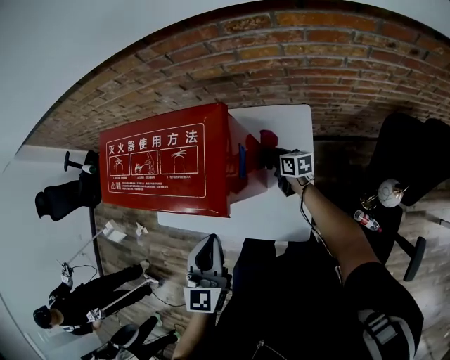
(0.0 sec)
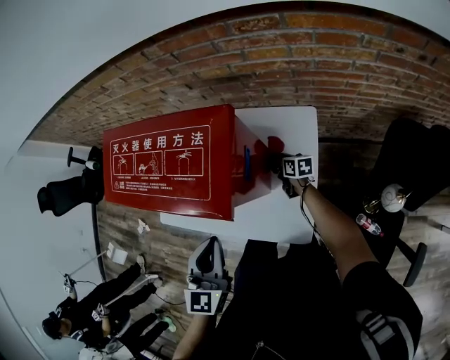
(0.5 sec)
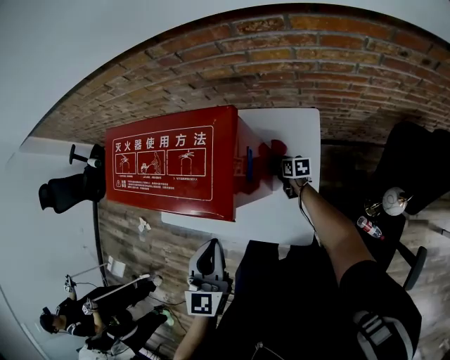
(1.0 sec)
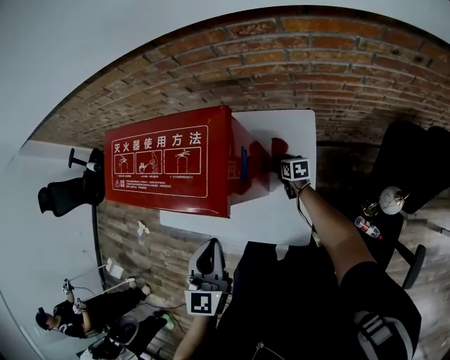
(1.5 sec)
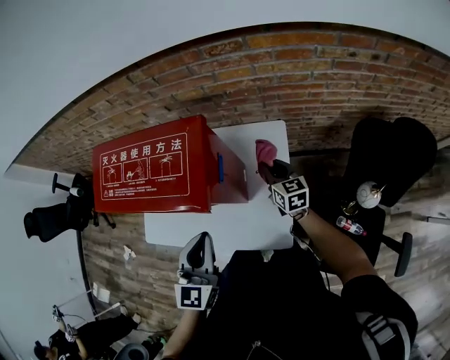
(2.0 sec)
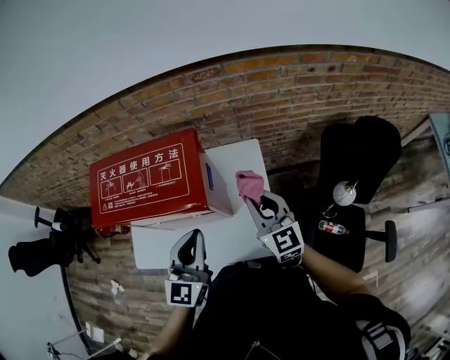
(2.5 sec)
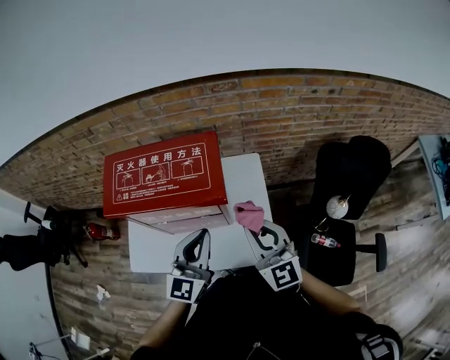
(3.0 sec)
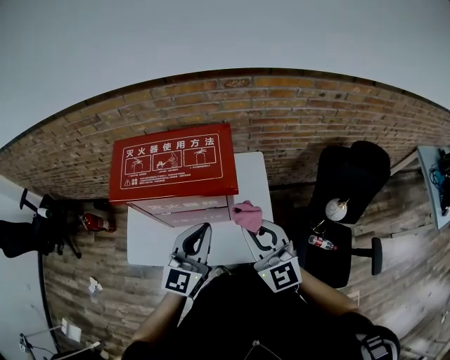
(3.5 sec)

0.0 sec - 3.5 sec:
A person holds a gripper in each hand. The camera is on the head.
0.0 sec - 2.0 sec: The right gripper moves upward, to the right and backward, some 15 cm, and changes its angle by about 30 degrees.
2.0 sec - 3.5 sec: The left gripper moves approximately 5 cm, and changes its angle by some 20 degrees; the right gripper goes approximately 30 cm upward and backward, and changes its angle by about 40 degrees.

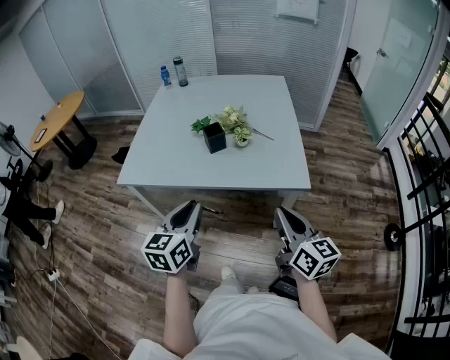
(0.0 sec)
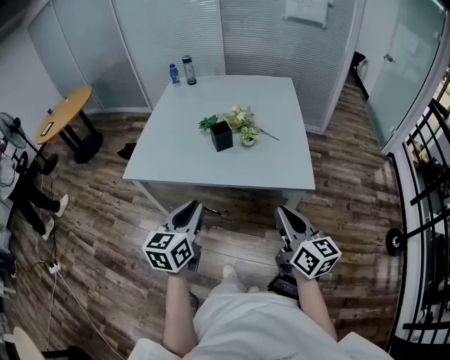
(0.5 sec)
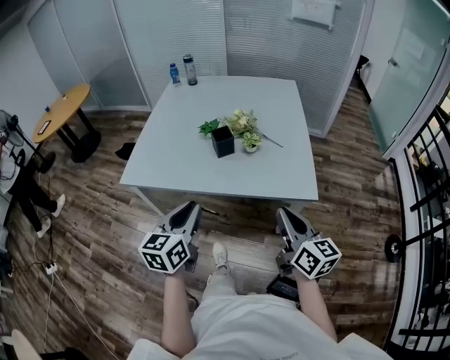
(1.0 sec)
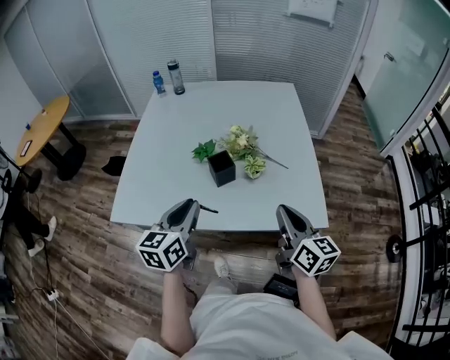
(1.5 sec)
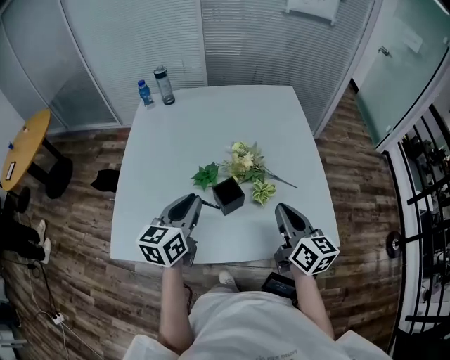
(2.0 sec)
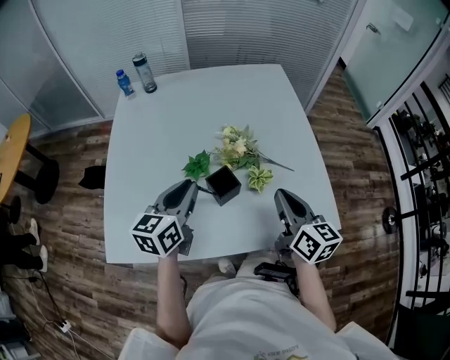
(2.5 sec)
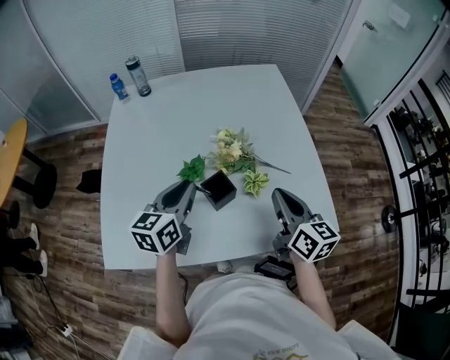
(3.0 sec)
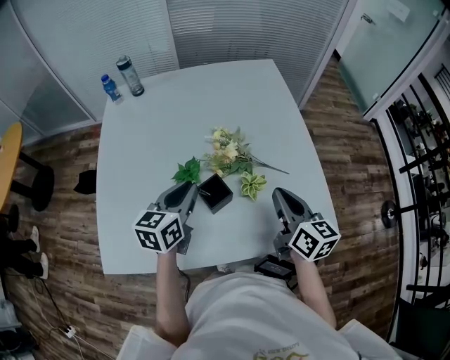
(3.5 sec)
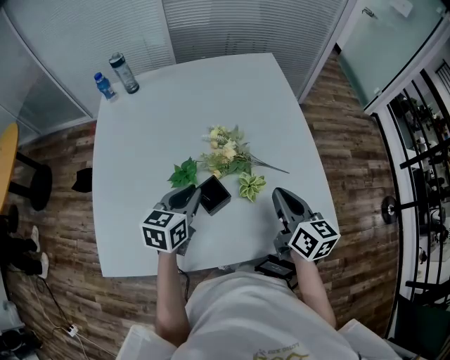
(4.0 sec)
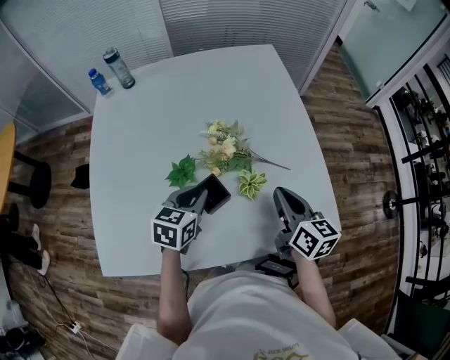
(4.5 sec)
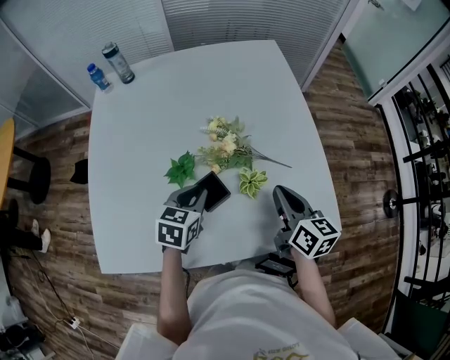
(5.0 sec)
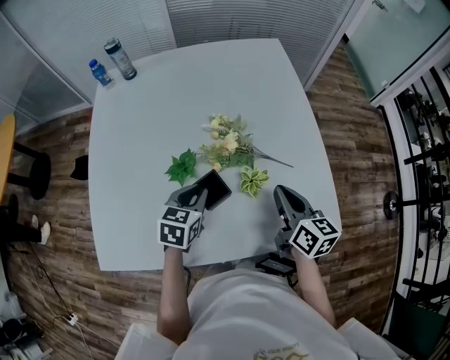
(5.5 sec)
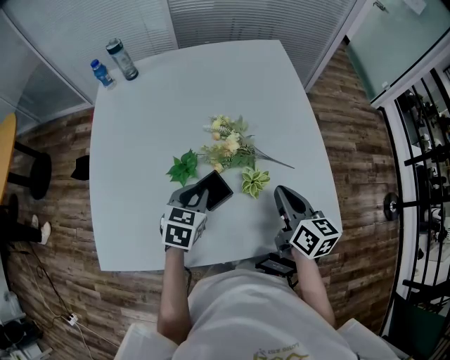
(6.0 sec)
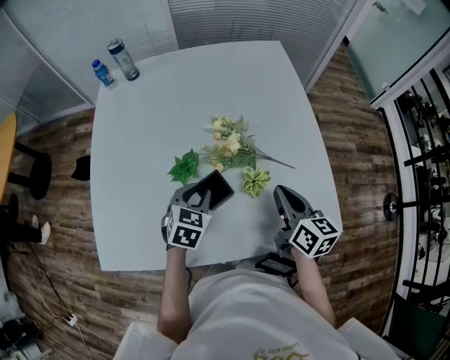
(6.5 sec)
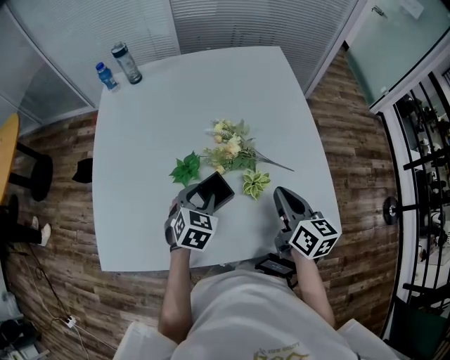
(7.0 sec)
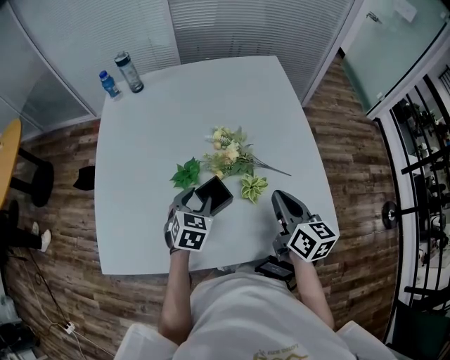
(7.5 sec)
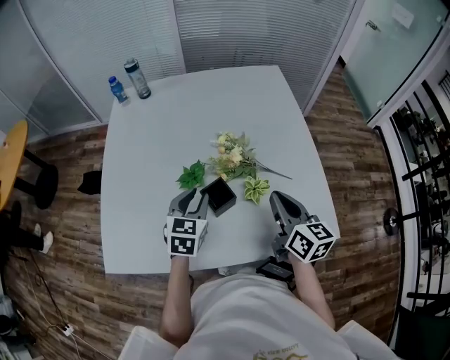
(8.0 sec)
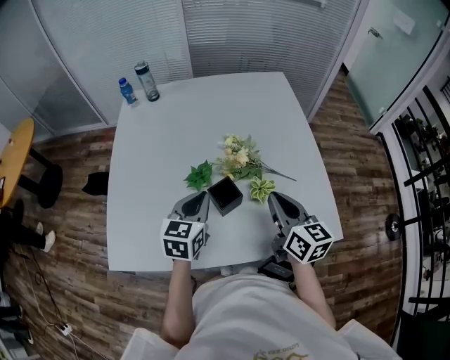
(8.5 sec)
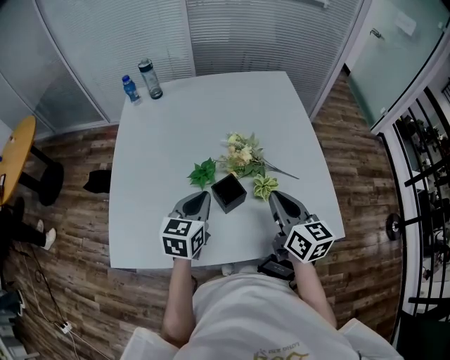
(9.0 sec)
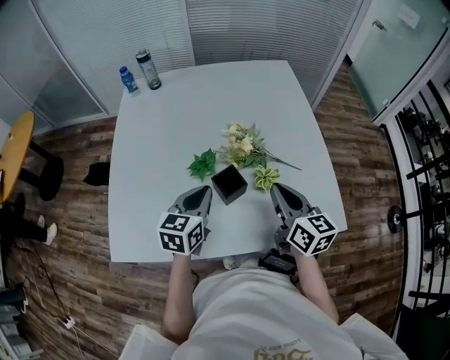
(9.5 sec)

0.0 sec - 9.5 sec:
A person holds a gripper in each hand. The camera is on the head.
0.0 sec - 2.0 sec: Both grippers move forward, roughly 40 cm.
2.0 sec - 4.0 sec: The left gripper shifts approximately 15 cm downward and forward, and changes its angle by some 20 degrees. The right gripper travels forward and downward by some 10 cm.
4.0 sec - 5.5 sec: The left gripper is displaced downward by about 5 cm.
5.5 sec - 7.5 sec: The left gripper opens its fingers.
7.5 sec - 9.5 sec: The right gripper goes some 5 cm to the left. The left gripper moves upward, about 10 cm, changes its angle by about 30 degrees, and closes its fingers.

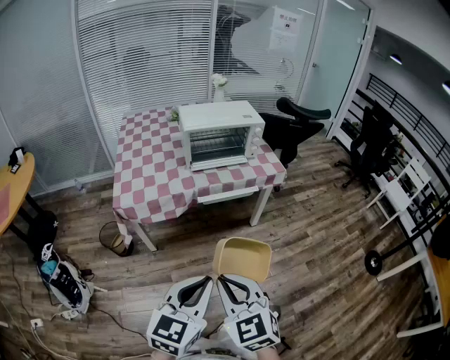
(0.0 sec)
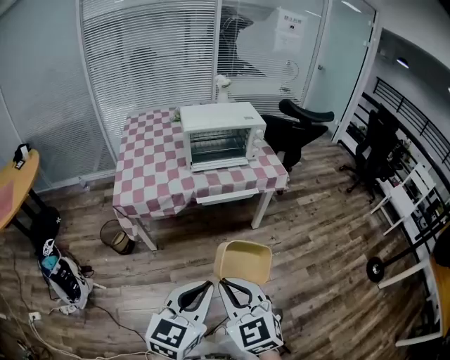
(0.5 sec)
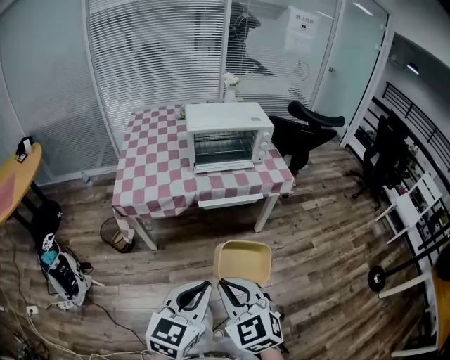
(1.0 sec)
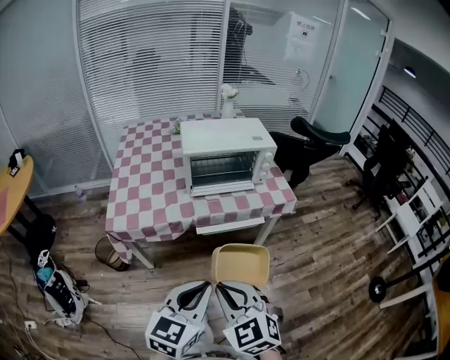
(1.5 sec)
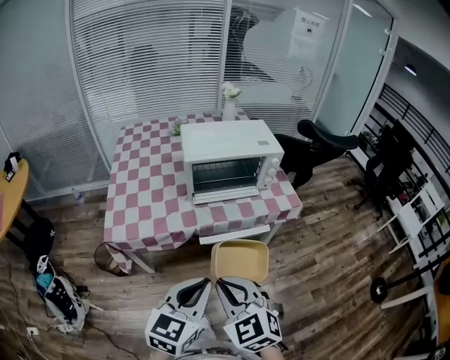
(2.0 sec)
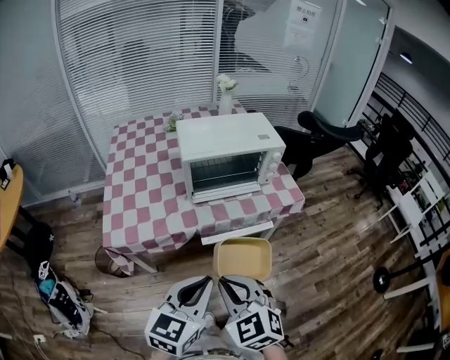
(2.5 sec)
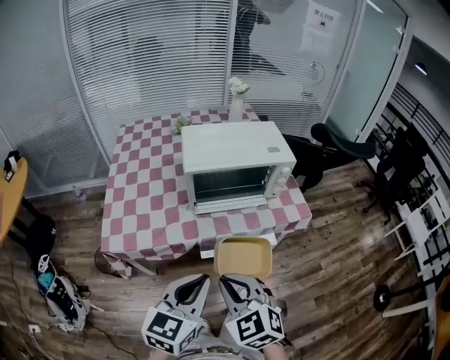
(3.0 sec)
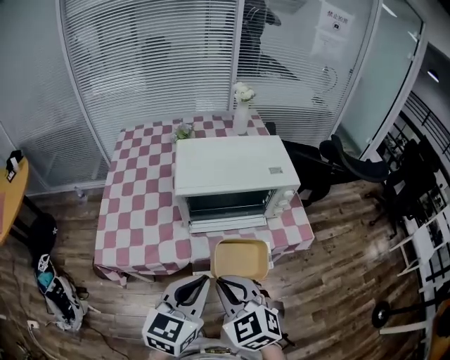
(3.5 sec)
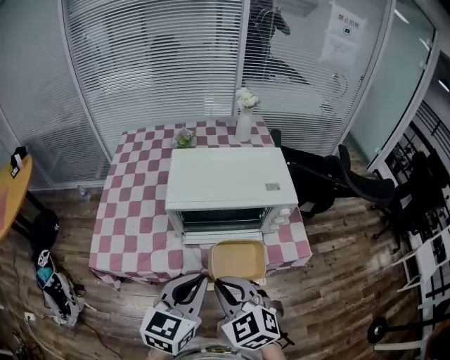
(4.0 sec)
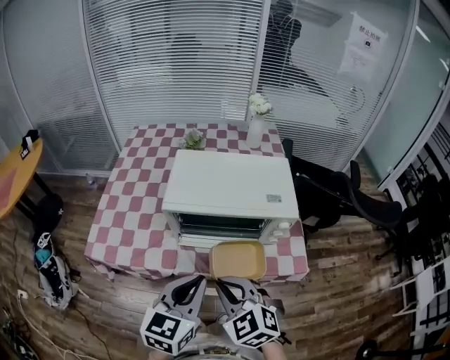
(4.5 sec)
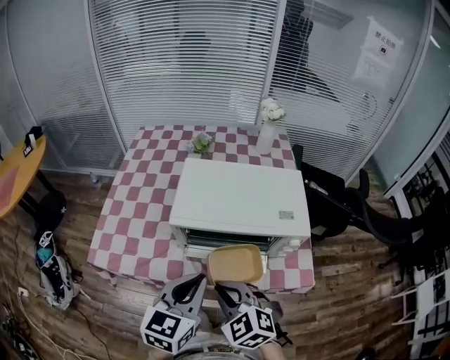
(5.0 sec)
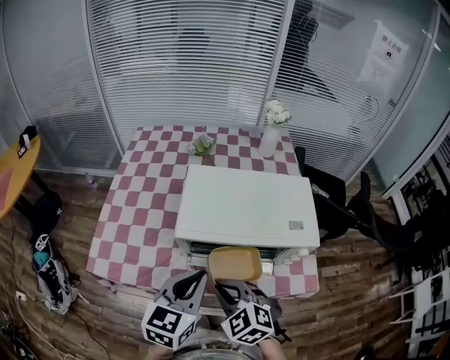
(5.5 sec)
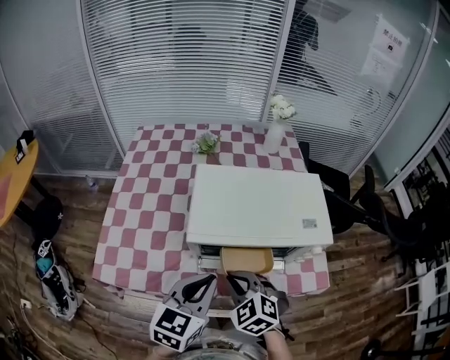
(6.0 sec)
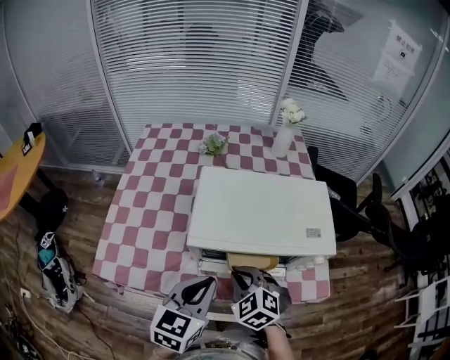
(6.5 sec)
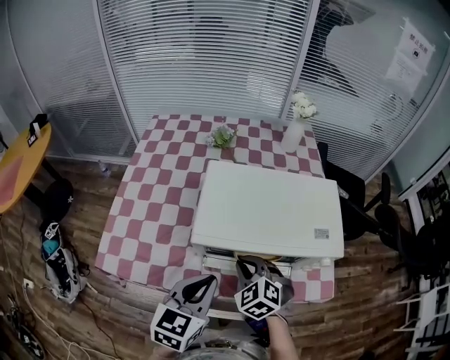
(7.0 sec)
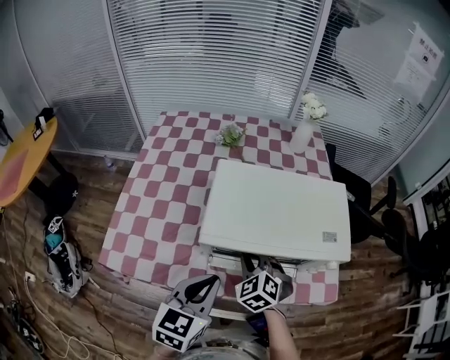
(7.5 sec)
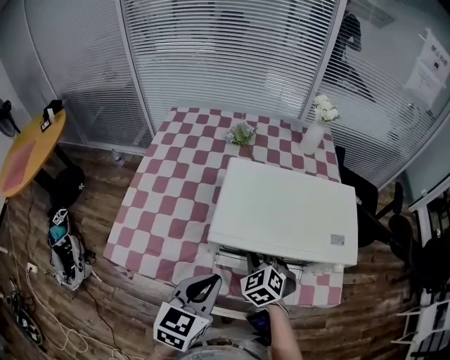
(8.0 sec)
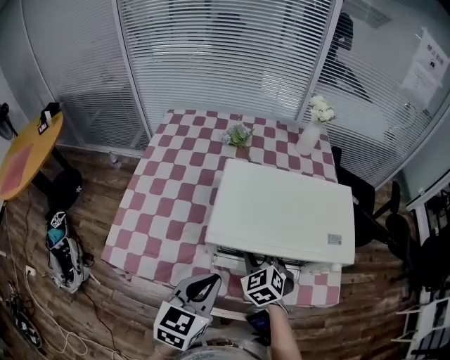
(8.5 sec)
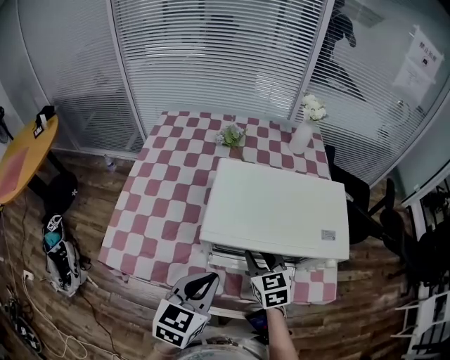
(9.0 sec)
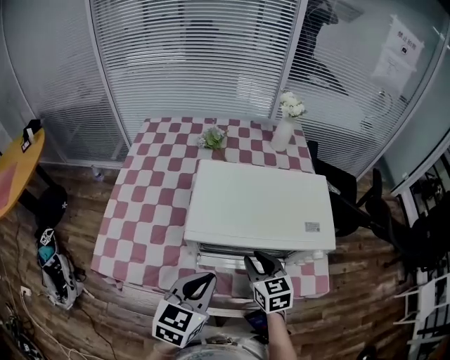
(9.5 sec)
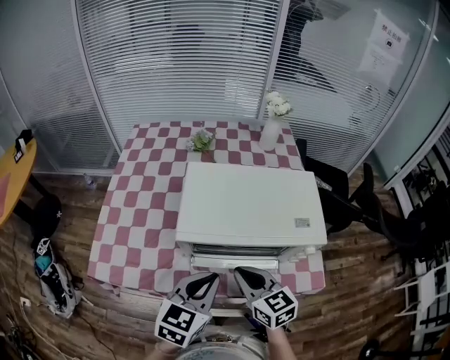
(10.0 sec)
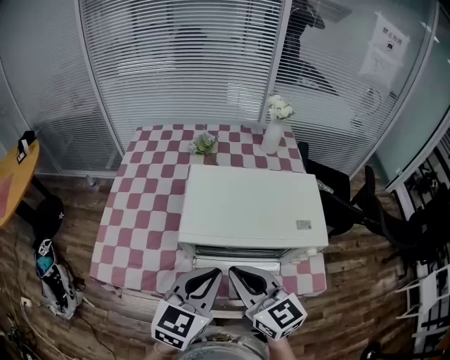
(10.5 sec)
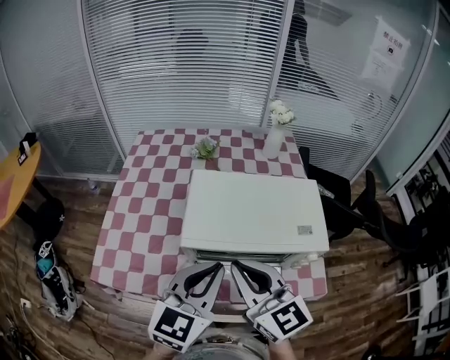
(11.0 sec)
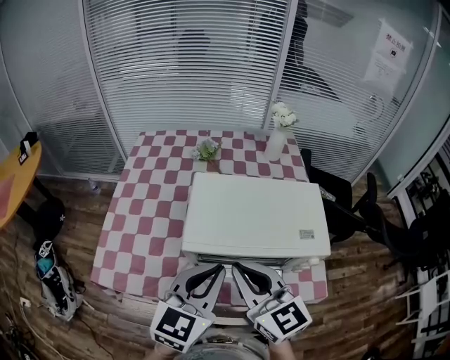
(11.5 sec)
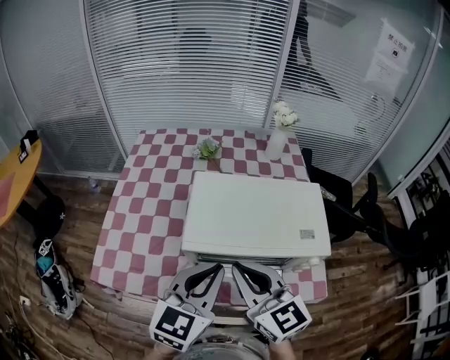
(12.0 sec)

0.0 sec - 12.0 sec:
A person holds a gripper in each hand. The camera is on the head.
0.0 sec - 2.0 sec: The grippers both shift forward by approximately 20 cm.
2.0 sec - 4.0 sec: Both grippers move forward, roughly 25 cm.
4.0 sec - 6.0 sec: The left gripper is displaced forward by approximately 10 cm, while the right gripper heads forward and downward, covering some 15 cm.
6.0 sec - 8.0 sec: The right gripper heads forward and downward, covering roughly 10 cm.
8.0 sec - 10.0 sec: The right gripper goes roughly 10 cm backward and upward, swivels roughly 50 degrees, and opens, then closes again, while the left gripper shifts approximately 5 cm to the right.
10.0 sec - 12.0 sec: The left gripper is displaced upward by roughly 10 cm; the right gripper is displaced upward by roughly 15 cm.

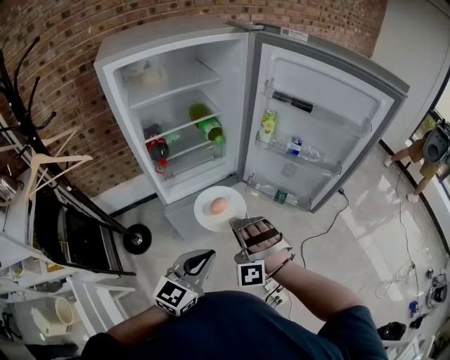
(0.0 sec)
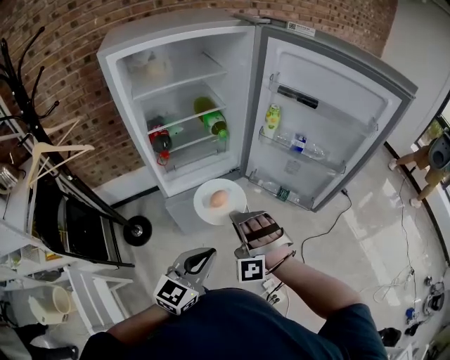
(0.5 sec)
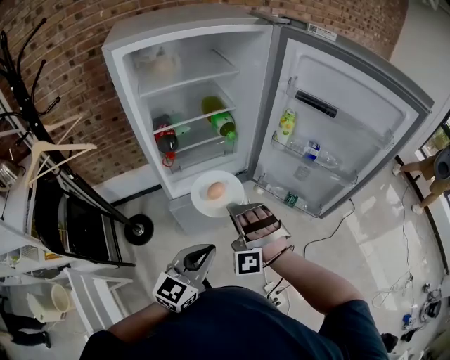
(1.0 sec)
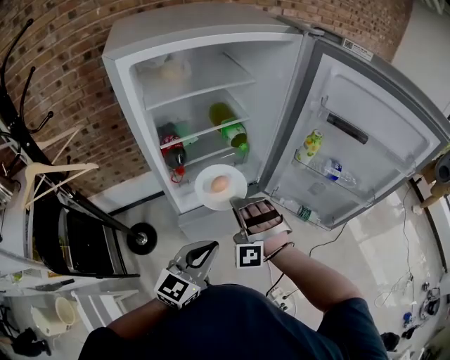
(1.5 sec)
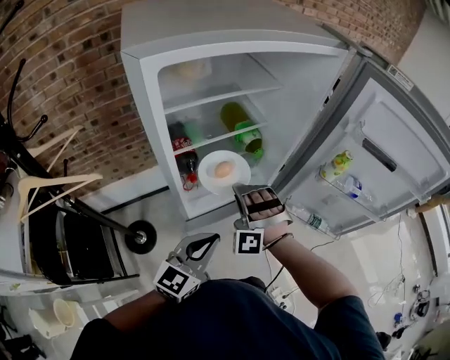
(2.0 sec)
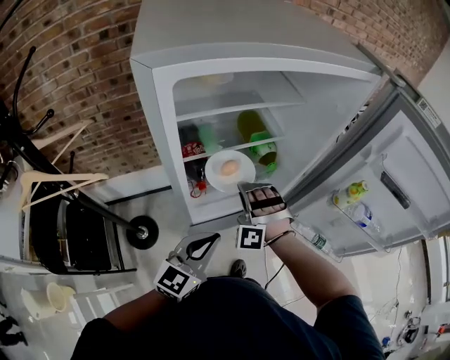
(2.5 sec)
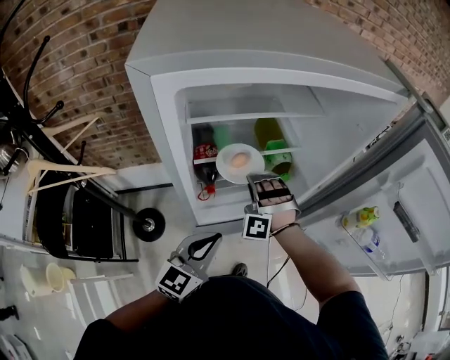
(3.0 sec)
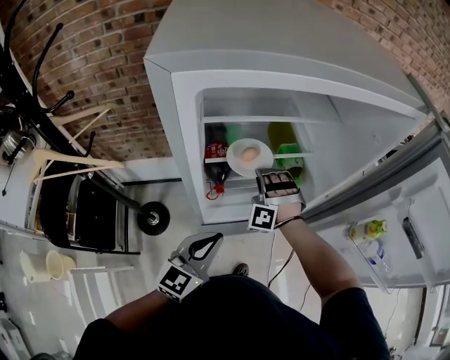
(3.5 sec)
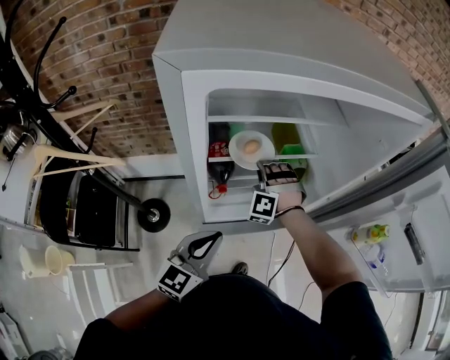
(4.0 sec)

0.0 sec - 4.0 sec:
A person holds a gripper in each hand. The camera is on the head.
0.0 sec - 2.0 sec: The left gripper shifts by some 25 cm.
2.0 sec - 4.0 sec: The left gripper changes place by about 10 cm.
